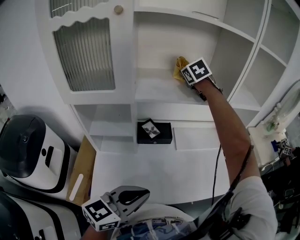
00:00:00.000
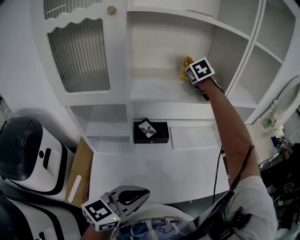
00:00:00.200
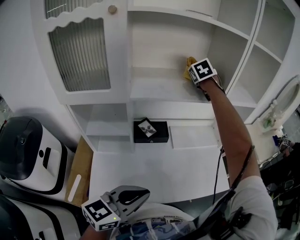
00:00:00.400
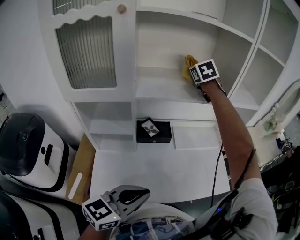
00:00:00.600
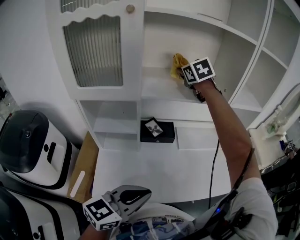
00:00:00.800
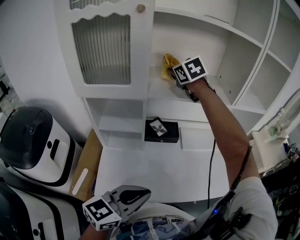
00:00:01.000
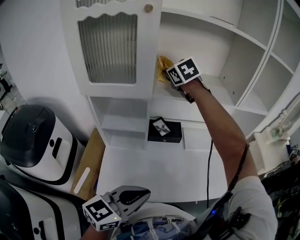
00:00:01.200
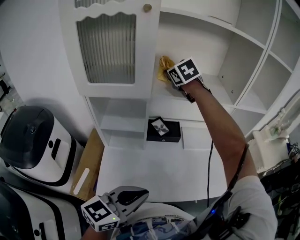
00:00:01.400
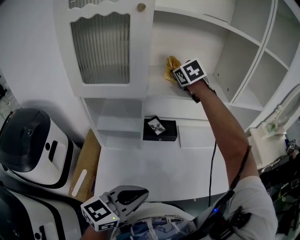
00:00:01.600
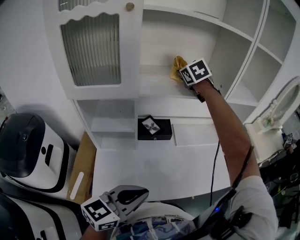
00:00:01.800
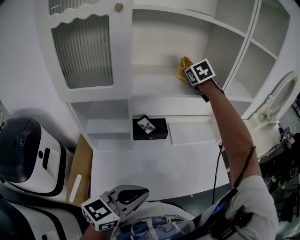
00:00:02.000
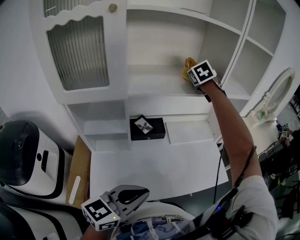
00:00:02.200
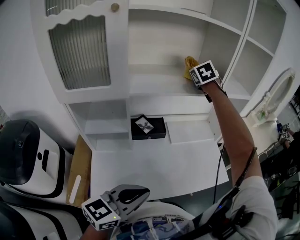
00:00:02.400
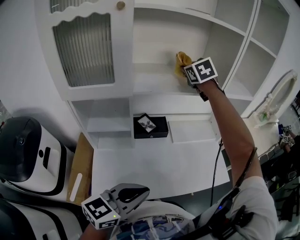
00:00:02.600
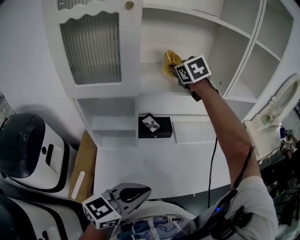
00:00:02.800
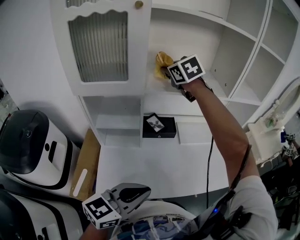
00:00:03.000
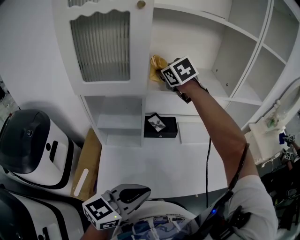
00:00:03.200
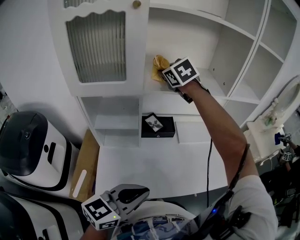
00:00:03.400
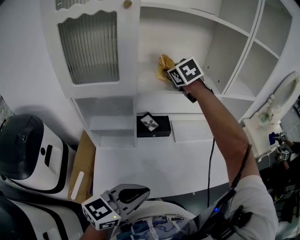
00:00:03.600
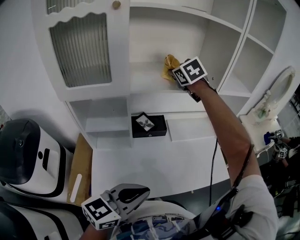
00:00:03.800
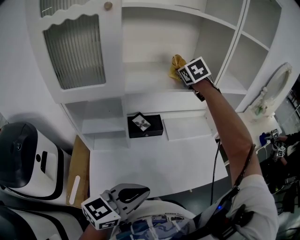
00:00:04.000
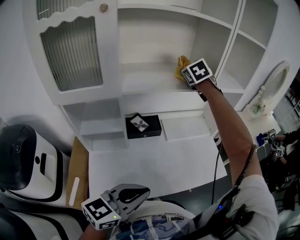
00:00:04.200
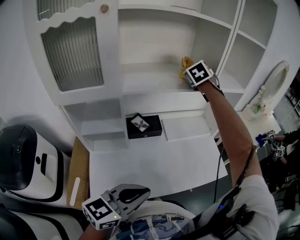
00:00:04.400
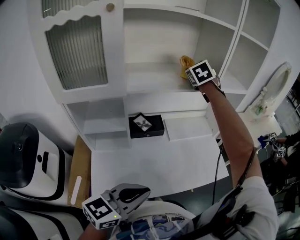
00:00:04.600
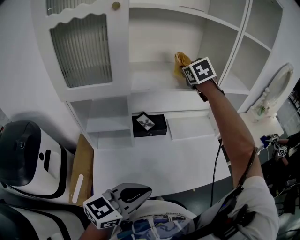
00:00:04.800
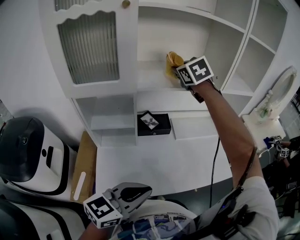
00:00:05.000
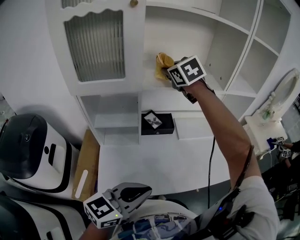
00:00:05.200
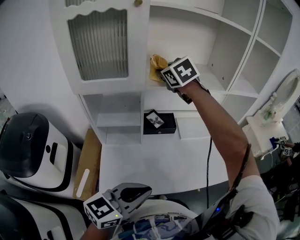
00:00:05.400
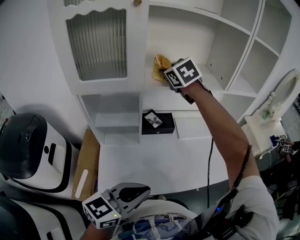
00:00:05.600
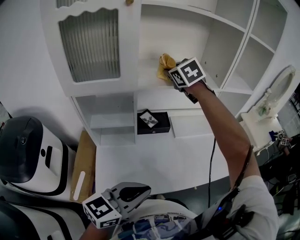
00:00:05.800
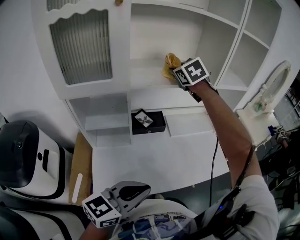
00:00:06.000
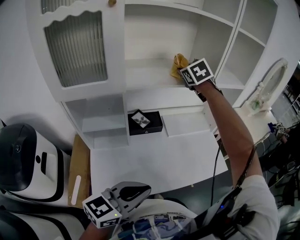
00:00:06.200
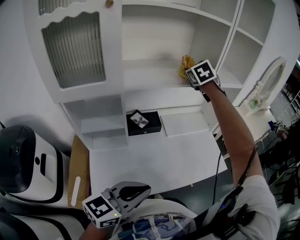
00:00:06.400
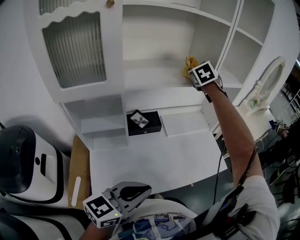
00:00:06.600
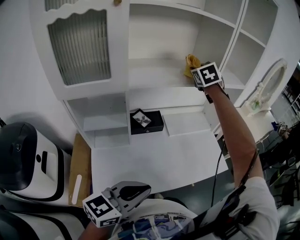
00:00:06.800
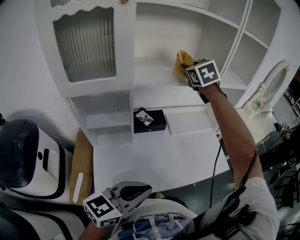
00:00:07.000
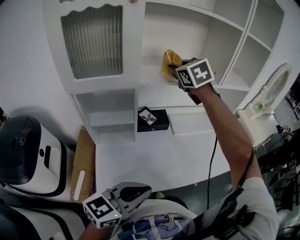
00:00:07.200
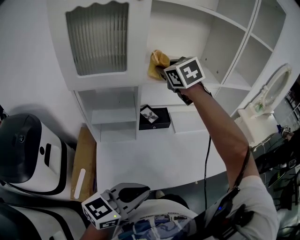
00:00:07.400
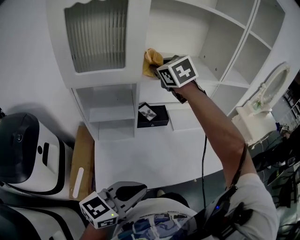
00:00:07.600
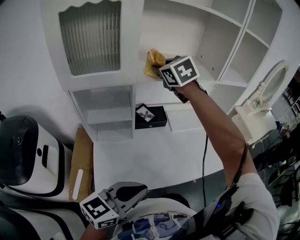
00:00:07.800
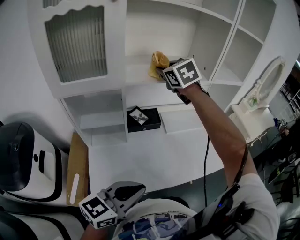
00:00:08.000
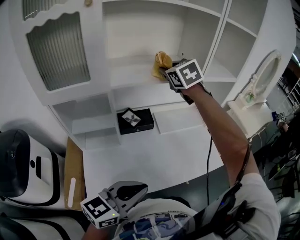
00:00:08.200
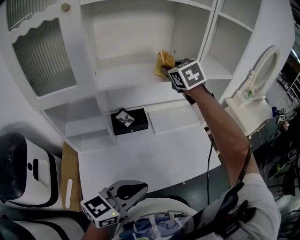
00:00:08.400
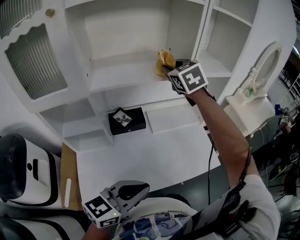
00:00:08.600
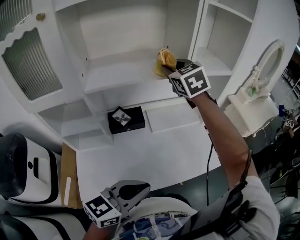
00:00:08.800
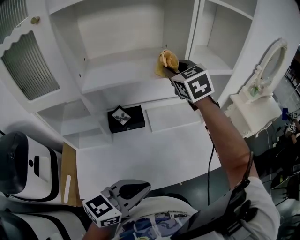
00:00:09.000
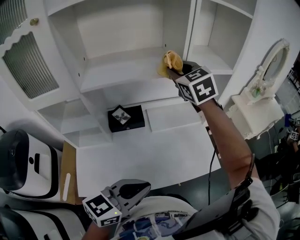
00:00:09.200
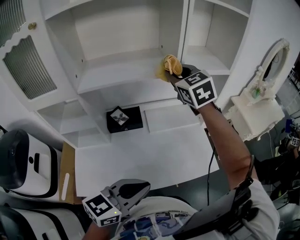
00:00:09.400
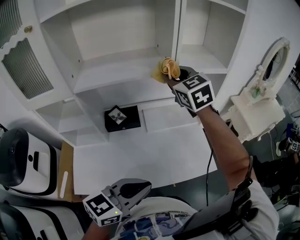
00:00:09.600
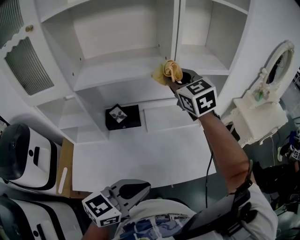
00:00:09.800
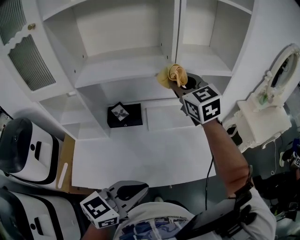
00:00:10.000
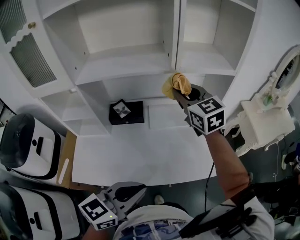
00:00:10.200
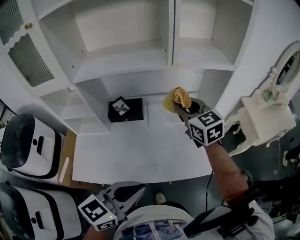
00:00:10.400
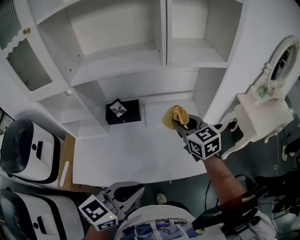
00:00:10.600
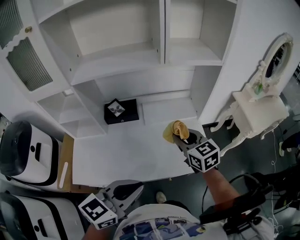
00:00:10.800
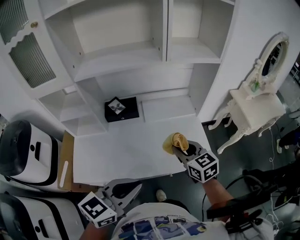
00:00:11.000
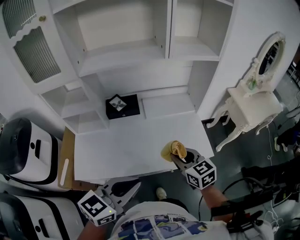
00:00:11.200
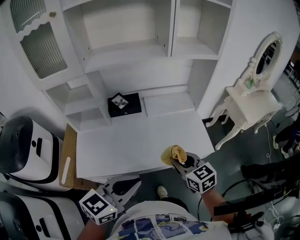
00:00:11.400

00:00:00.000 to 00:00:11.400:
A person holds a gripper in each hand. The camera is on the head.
00:00:00.000 to 00:00:01.400: The right gripper is displaced to the left and backward by about 15 cm. Meanwhile the left gripper moves about 5 cm.
00:00:01.400 to 00:00:02.800: The right gripper shifts some 10 cm to the right.
00:00:02.800 to 00:00:04.200: The right gripper shifts roughly 15 cm to the right and forward.
00:00:04.200 to 00:00:05.600: The left gripper shifts by about 5 cm; the right gripper is displaced to the left and backward by about 20 cm, and rotates roughly 20 degrees.
00:00:05.600 to 00:00:07.200: The right gripper goes to the right and returns, about 20 cm each way.
00:00:07.200 to 00:00:08.600: Both grippers move to the right and forward, approximately 15 cm.
00:00:08.600 to 00:00:10.000: The grippers both shift to the right by about 10 cm. The right gripper turns by some 20 degrees.
00:00:10.000 to 00:00:11.400: The right gripper moves backward and downward, approximately 40 cm, and rotates roughly 30 degrees. The left gripper goes approximately 10 cm backward and to the left.

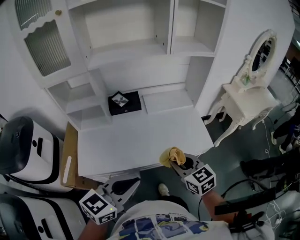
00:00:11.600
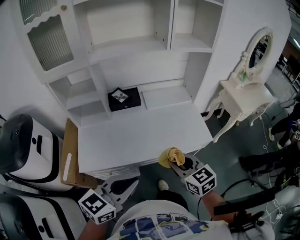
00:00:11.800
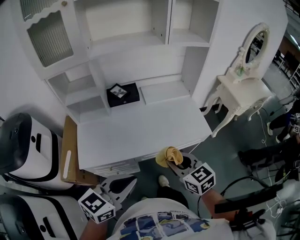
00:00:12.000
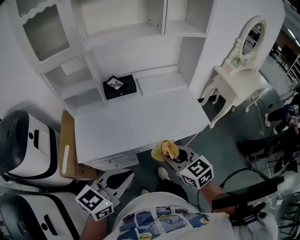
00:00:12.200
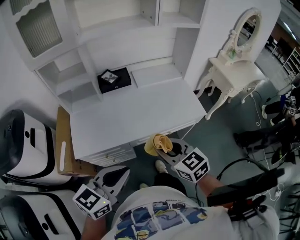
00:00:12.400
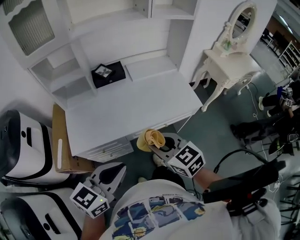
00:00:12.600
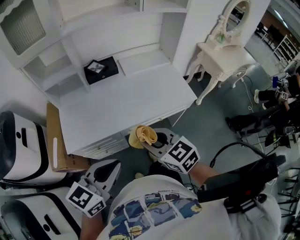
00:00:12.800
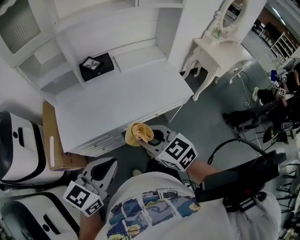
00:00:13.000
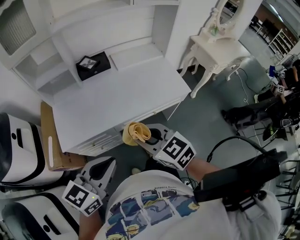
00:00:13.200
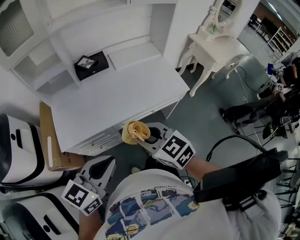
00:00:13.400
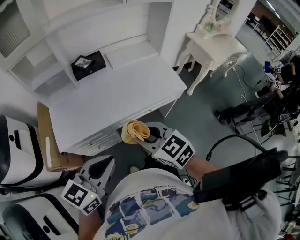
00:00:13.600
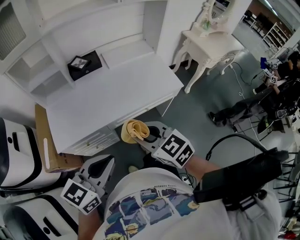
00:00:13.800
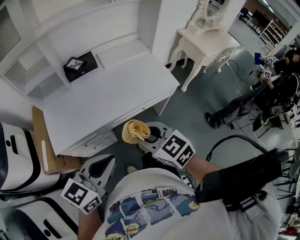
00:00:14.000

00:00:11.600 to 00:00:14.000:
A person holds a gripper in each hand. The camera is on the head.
00:00:11.600 to 00:00:12.800: Both grippers move backward and to the left, approximately 10 cm.
00:00:12.800 to 00:00:14.000: The right gripper ends up roughly 5 cm from where it was.

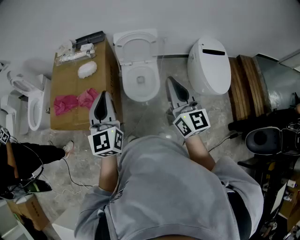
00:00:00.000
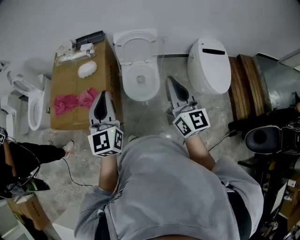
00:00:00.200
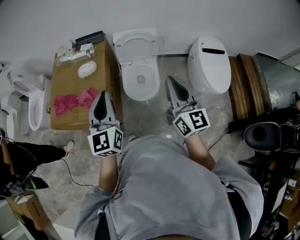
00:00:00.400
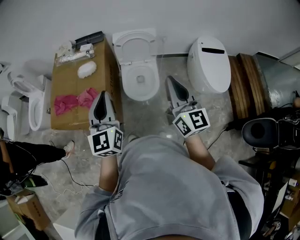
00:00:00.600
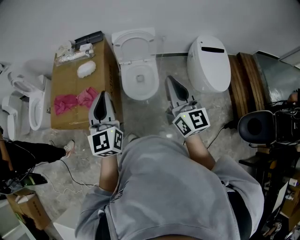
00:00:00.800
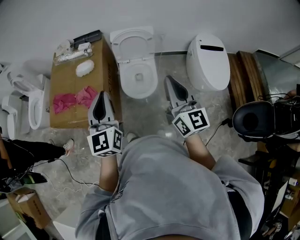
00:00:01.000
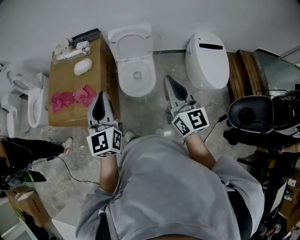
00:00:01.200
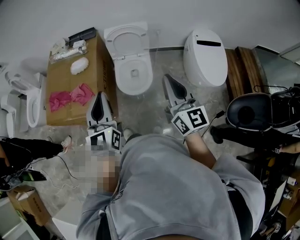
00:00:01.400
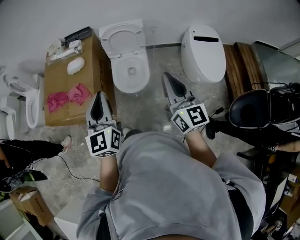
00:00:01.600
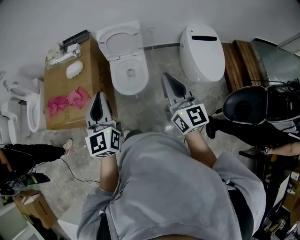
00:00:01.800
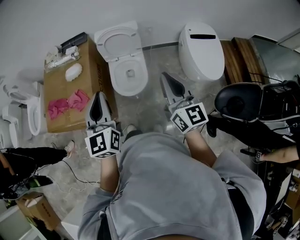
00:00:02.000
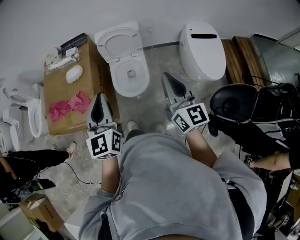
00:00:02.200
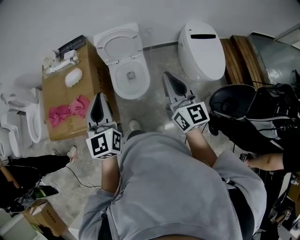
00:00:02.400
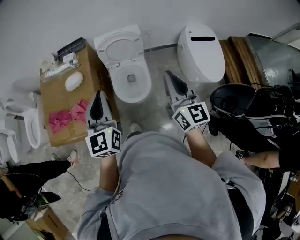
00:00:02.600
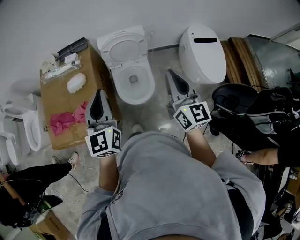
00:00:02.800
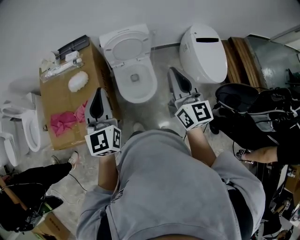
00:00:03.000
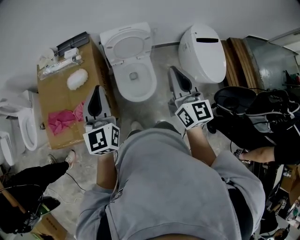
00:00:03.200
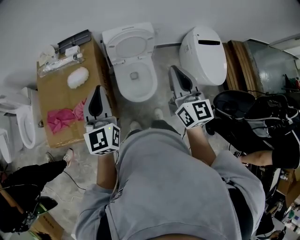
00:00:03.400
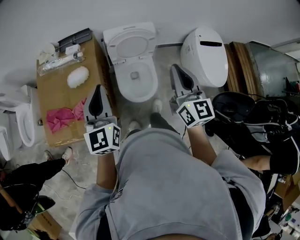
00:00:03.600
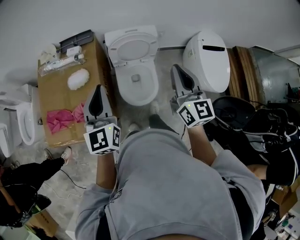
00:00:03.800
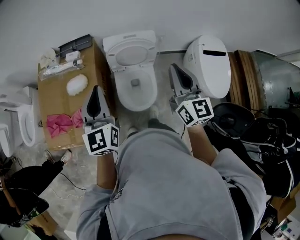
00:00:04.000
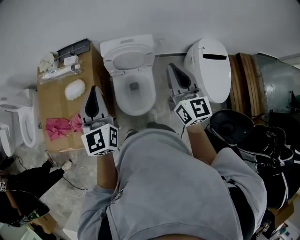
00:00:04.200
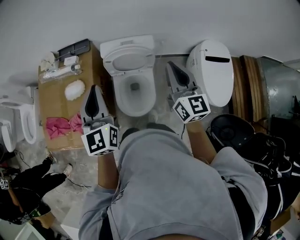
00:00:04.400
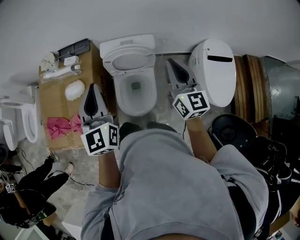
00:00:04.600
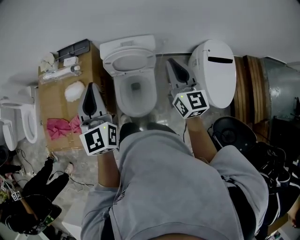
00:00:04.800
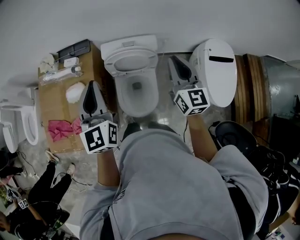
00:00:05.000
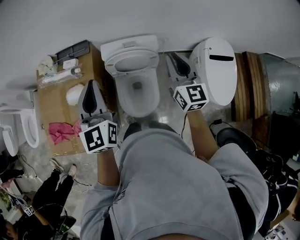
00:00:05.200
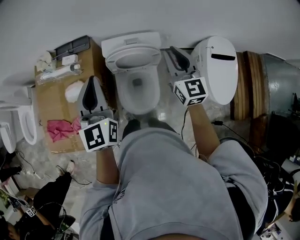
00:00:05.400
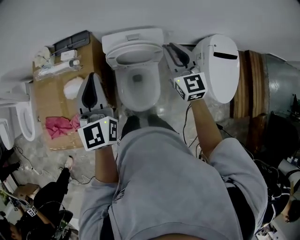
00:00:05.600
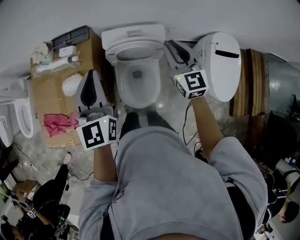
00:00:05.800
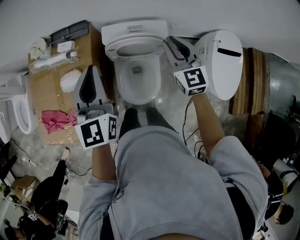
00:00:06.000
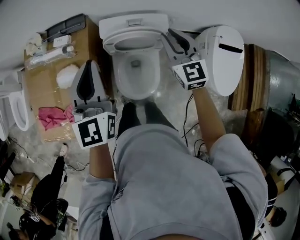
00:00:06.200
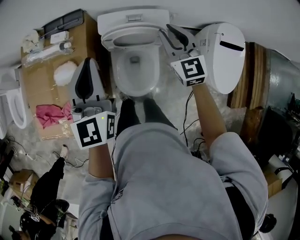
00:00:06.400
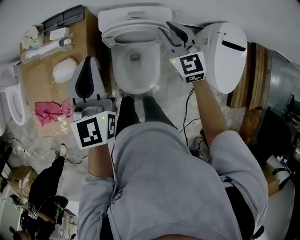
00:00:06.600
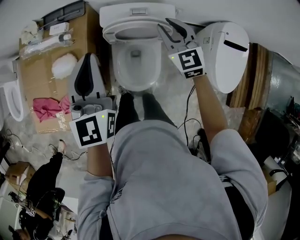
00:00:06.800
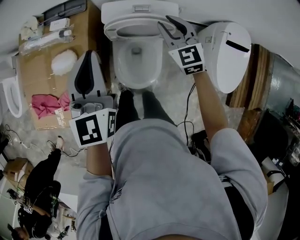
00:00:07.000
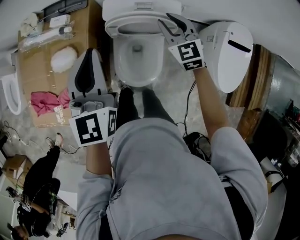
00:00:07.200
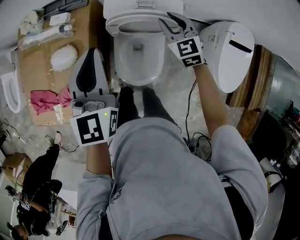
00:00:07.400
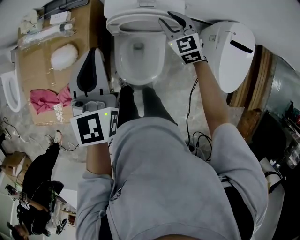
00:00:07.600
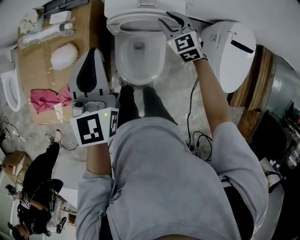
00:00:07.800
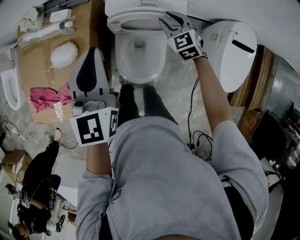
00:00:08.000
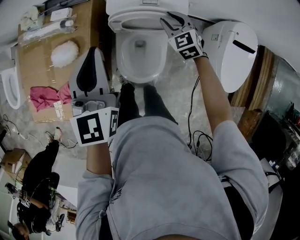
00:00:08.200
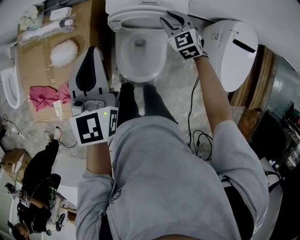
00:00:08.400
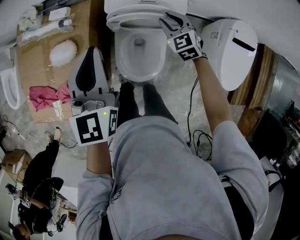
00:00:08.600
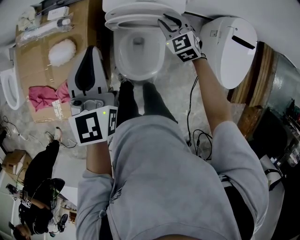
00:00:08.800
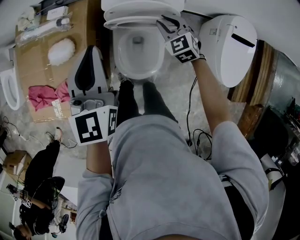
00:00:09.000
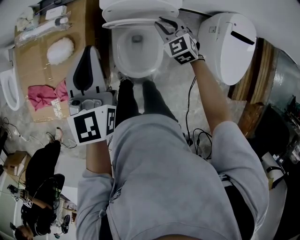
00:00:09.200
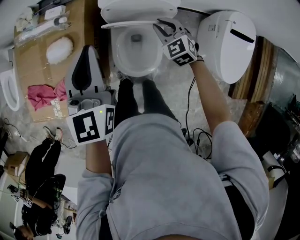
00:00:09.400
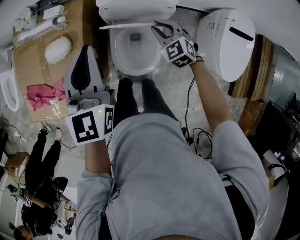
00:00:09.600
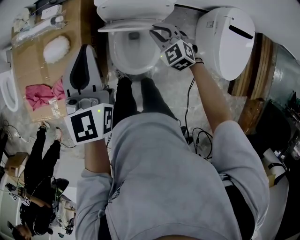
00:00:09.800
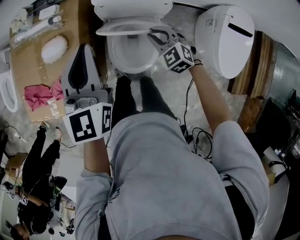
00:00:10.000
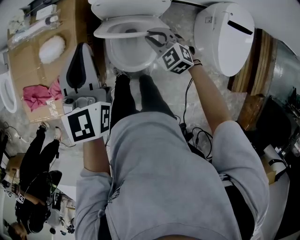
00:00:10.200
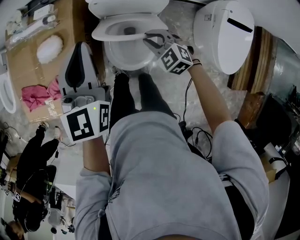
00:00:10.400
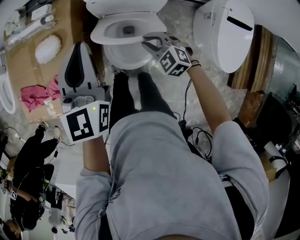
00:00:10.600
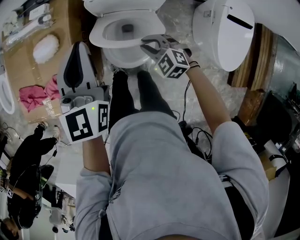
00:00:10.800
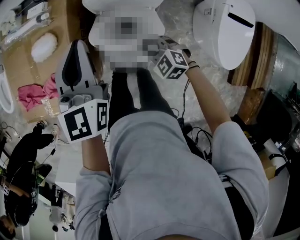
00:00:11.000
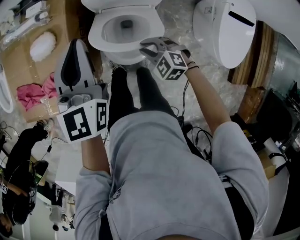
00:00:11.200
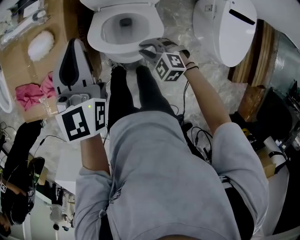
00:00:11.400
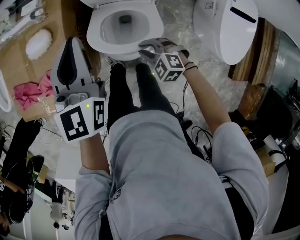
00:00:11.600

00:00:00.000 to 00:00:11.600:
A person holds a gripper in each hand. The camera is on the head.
00:00:00.000 to 00:00:01.400: Both grippers travel together to the right, roughly 5 cm.
00:00:01.400 to 00:00:02.800: Both grippers move forward, approximately 15 cm.
00:00:02.800 to 00:00:04.400: Both grippers move forward, roughly 20 cm.
00:00:04.400 to 00:00:05.800: The left gripper travels forward by some 10 cm, while the right gripper shifts about 15 cm forward and downward, and swivels approximately 20 degrees.
00:00:05.800 to 00:00:07.200: The left gripper heads downward, covering roughly 5 cm; the right gripper is displaced downward and forward by roughly 15 cm, and swivels approximately 20 degrees.
00:00:07.200 to 00:00:08.800: The right gripper shifts some 10 cm downward.
00:00:08.800 to 00:00:10.200: The right gripper shifts about 15 cm backward; the left gripper goes roughly 5 cm backward.
00:00:10.200 to 00:00:11.600: The left gripper is displaced downward by roughly 5 cm; the right gripper goes approximately 15 cm backward, downward and to the left.
